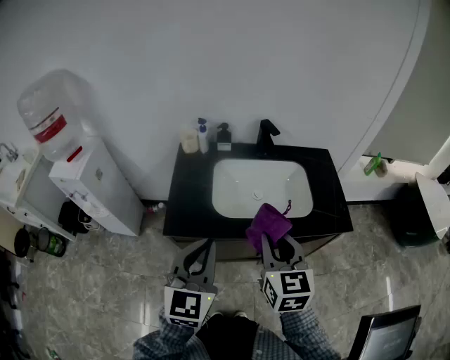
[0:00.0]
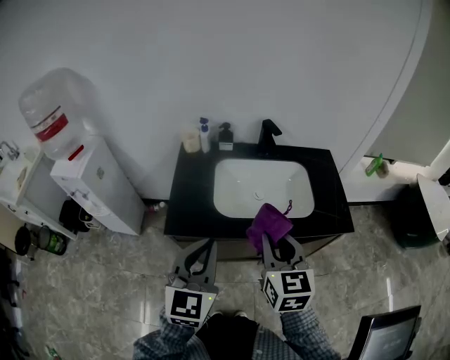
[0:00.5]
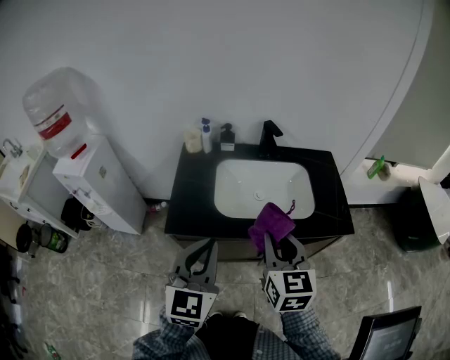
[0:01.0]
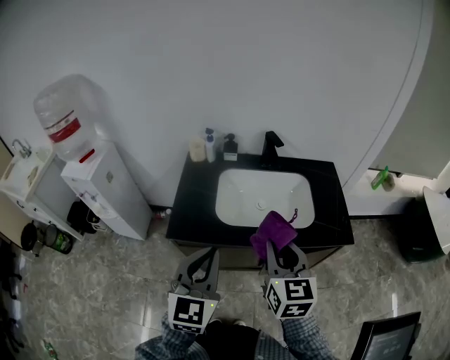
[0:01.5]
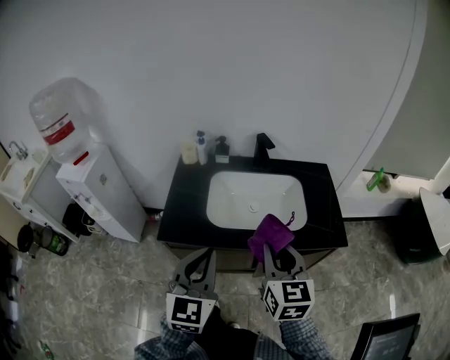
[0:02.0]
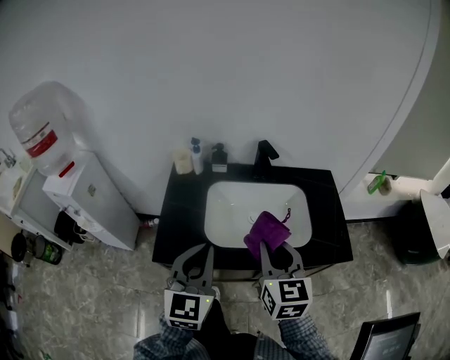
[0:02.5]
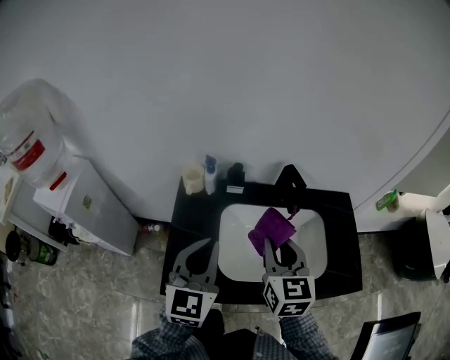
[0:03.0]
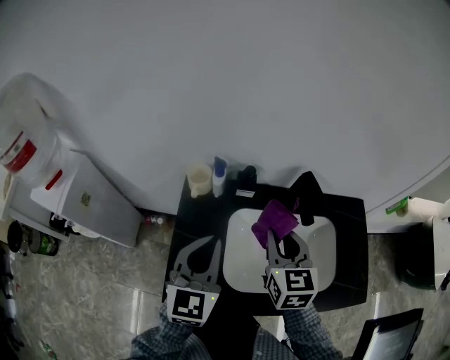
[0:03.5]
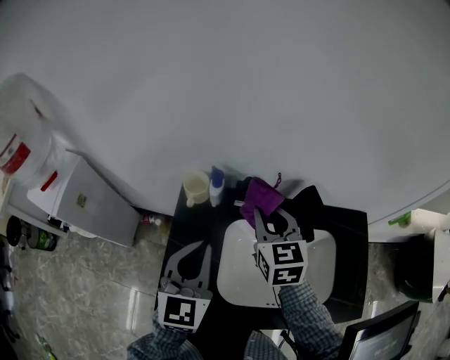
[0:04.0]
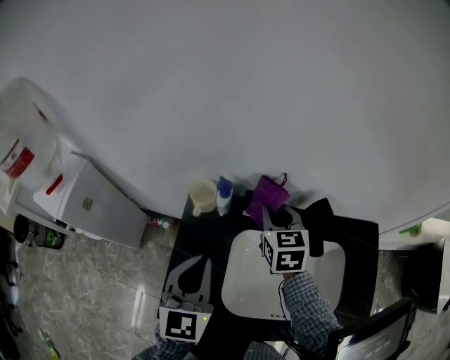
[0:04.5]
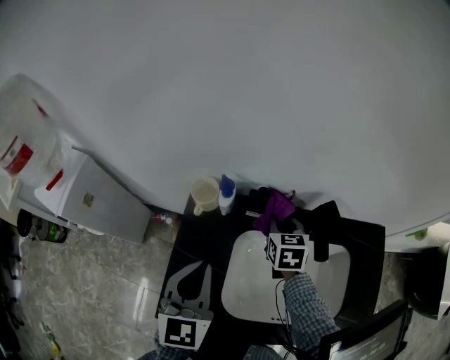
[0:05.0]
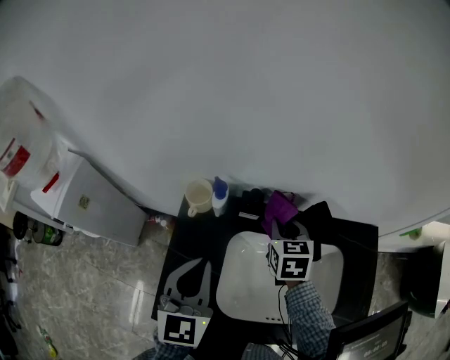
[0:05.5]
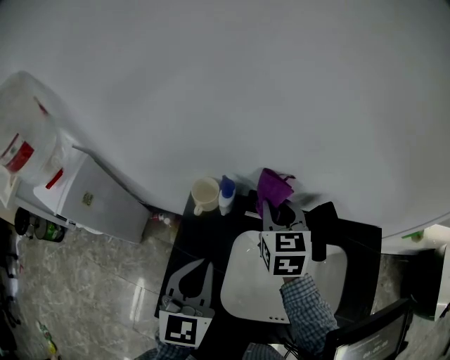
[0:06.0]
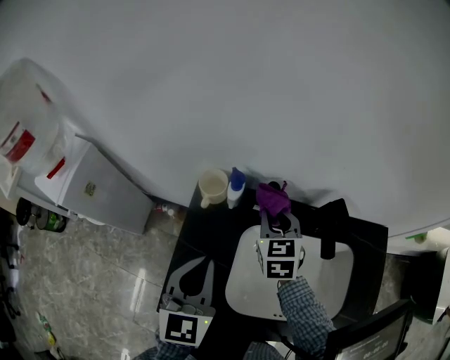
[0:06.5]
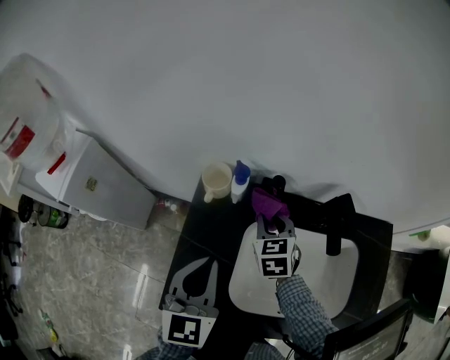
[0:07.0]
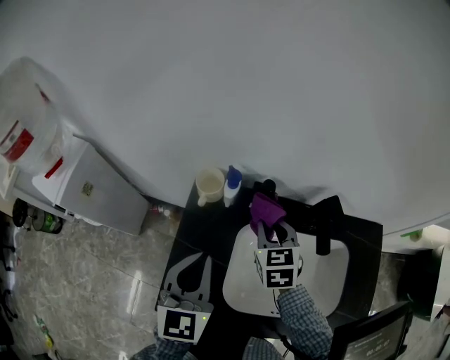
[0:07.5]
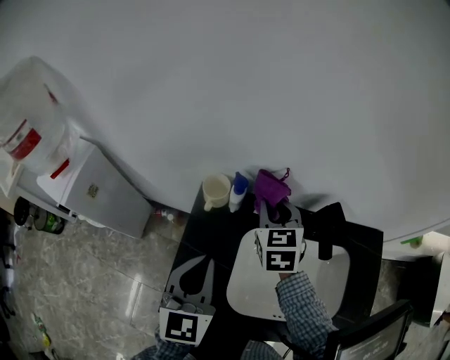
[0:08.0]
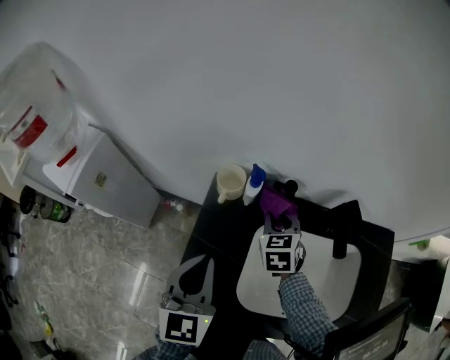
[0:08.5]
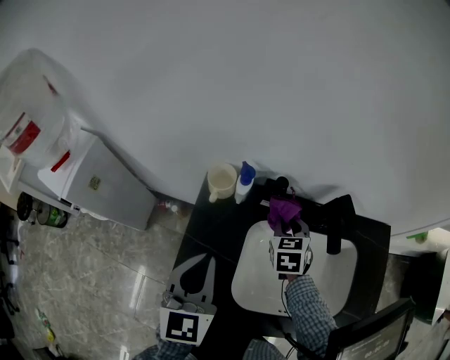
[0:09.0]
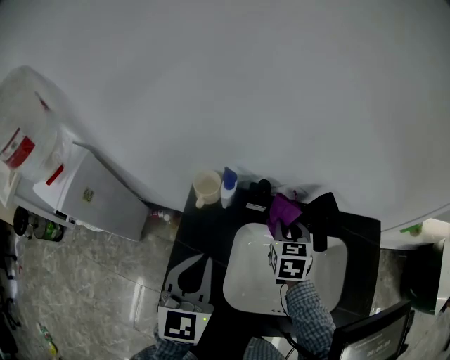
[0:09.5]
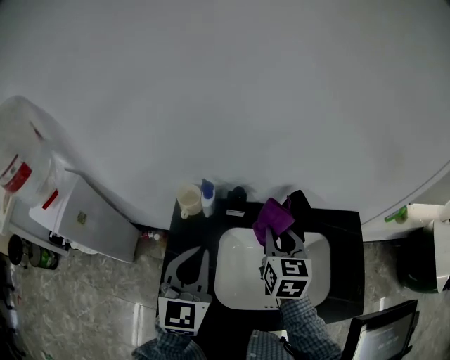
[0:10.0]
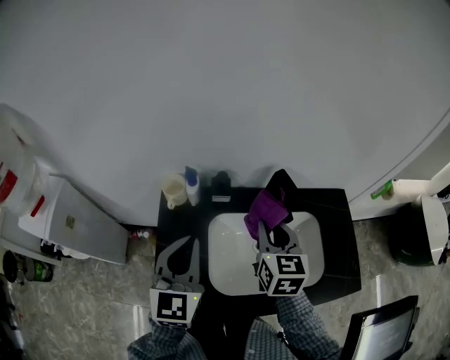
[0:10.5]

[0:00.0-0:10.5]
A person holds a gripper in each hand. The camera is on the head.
0:00.0 to 0:02.0: The left gripper ends up about 5 cm from where it was; the right gripper heads to the right, covering some 5 cm.
0:02.0 to 0:04.0: Both grippers move forward, approximately 40 cm.
0:04.0 to 0:06.5: The right gripper goes up and down, about 15 cm each way, reversing 2 times.
0:06.5 to 0:08.5: The right gripper moves up and down over about 10 cm, changing direction 2 times.
0:08.5 to 0:10.5: The right gripper travels upward, to the right and backward by some 20 cm, and turns by roughly 30 degrees. Meanwhile the left gripper shifts approximately 10 cm to the right and upward.

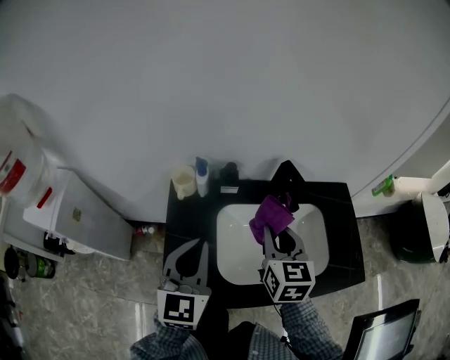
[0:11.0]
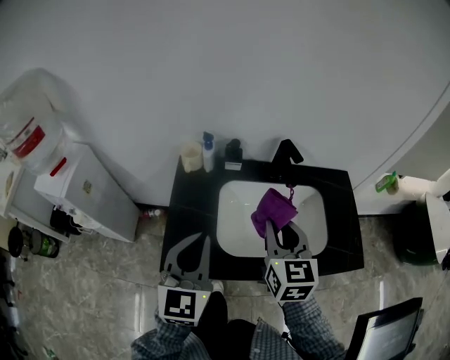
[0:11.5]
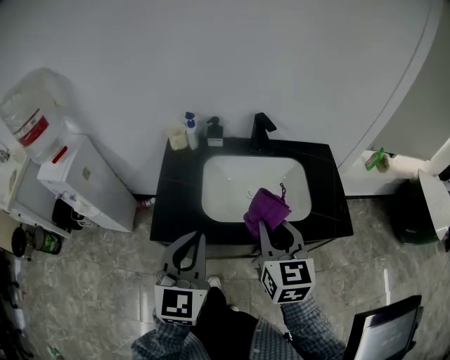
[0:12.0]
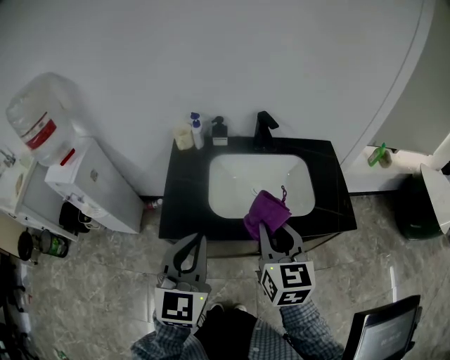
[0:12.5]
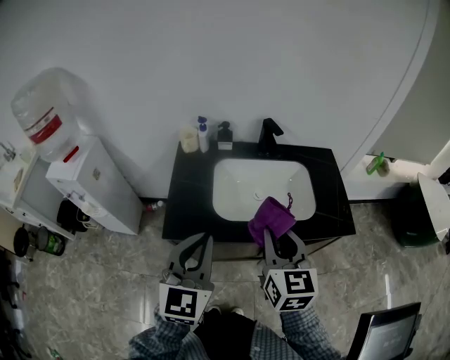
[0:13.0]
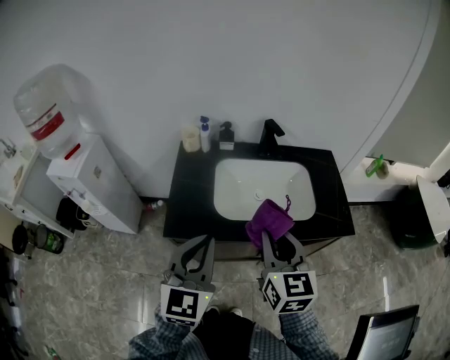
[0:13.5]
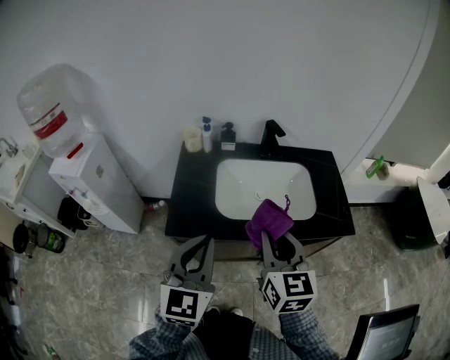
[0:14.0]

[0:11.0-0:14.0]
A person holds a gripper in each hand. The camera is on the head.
0:11.0 to 0:12.5: Both grippers move backward, about 25 cm.
0:12.5 to 0:14.0: The grippers make only small movements.

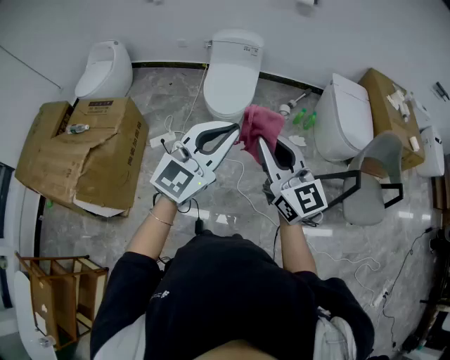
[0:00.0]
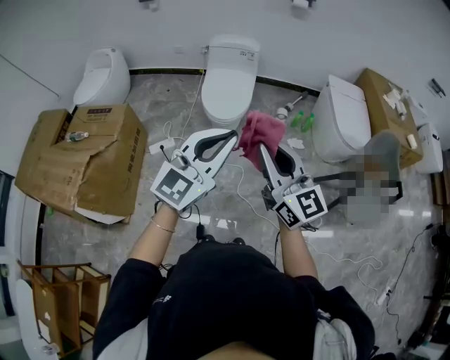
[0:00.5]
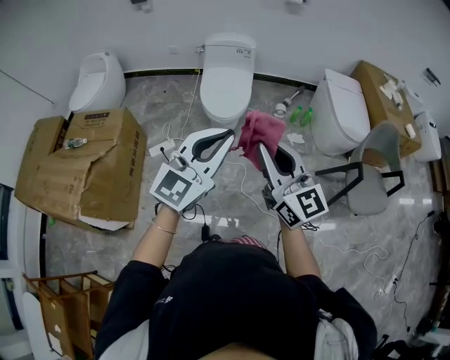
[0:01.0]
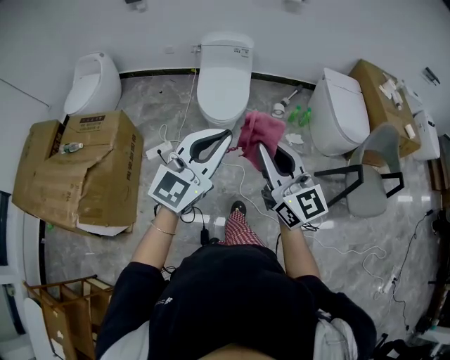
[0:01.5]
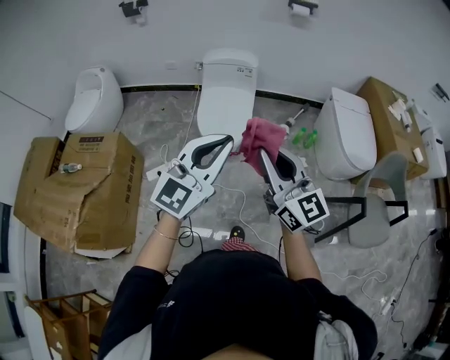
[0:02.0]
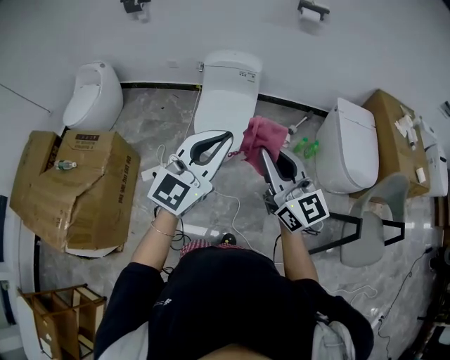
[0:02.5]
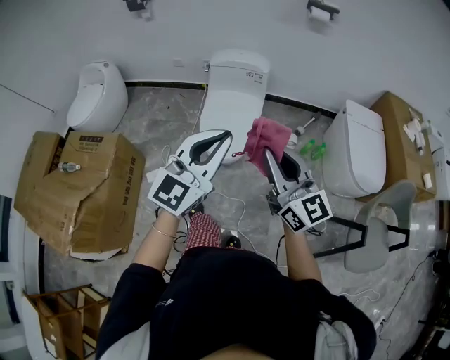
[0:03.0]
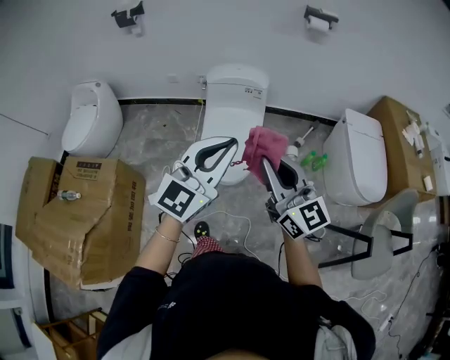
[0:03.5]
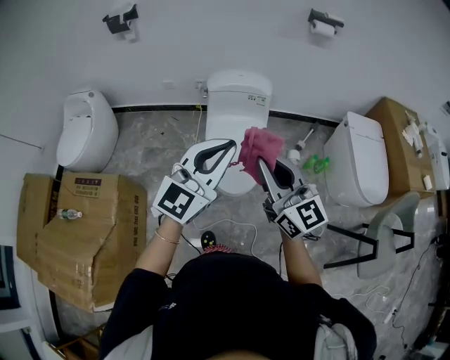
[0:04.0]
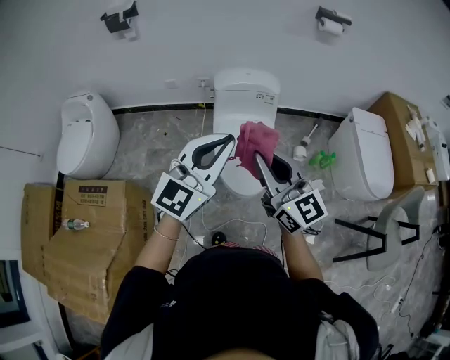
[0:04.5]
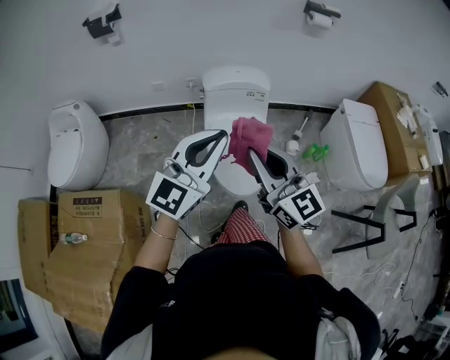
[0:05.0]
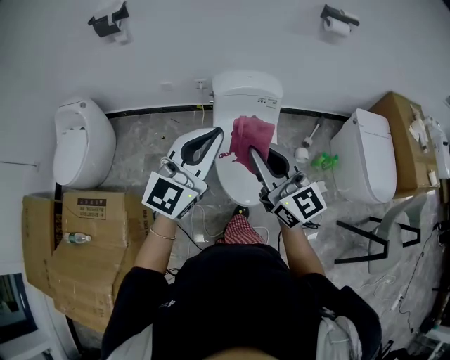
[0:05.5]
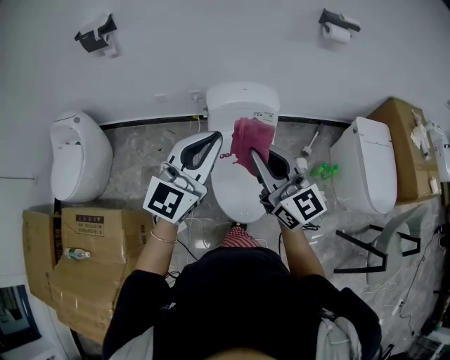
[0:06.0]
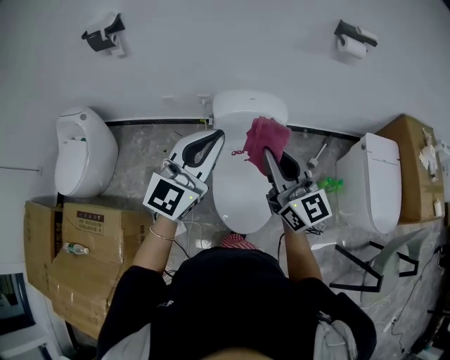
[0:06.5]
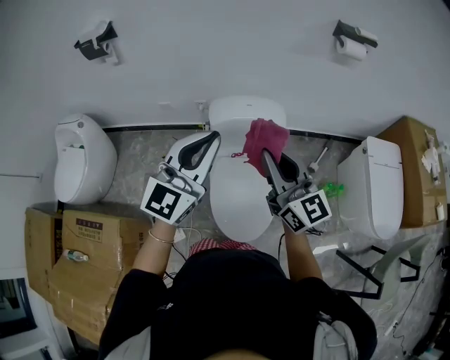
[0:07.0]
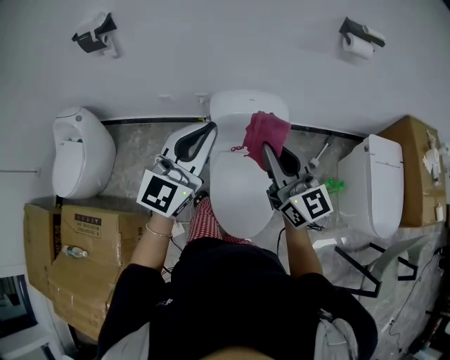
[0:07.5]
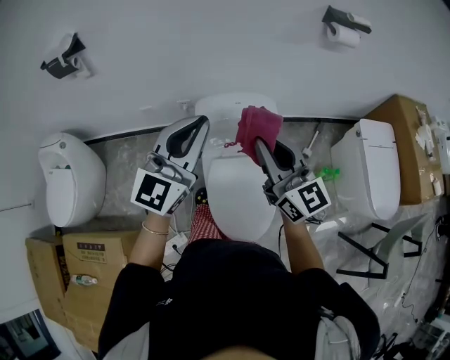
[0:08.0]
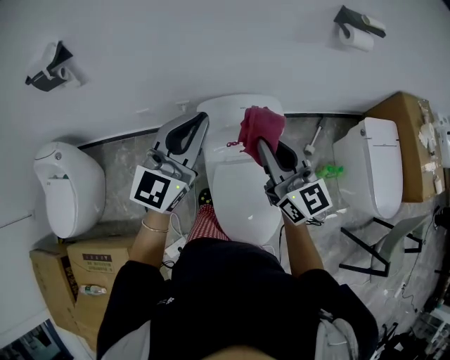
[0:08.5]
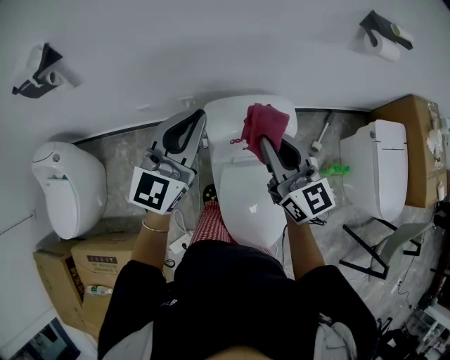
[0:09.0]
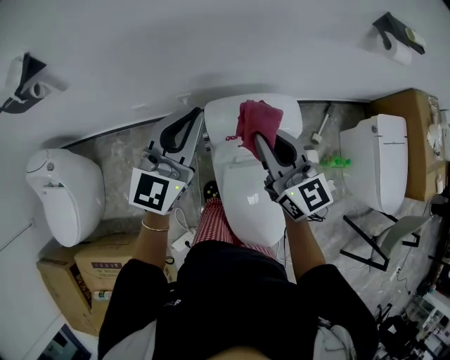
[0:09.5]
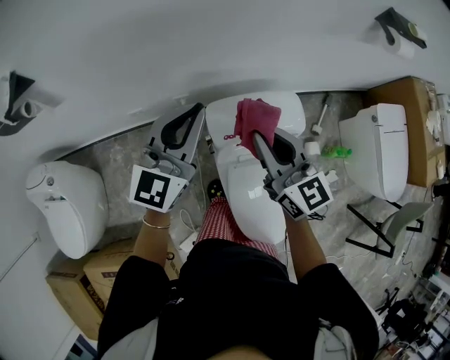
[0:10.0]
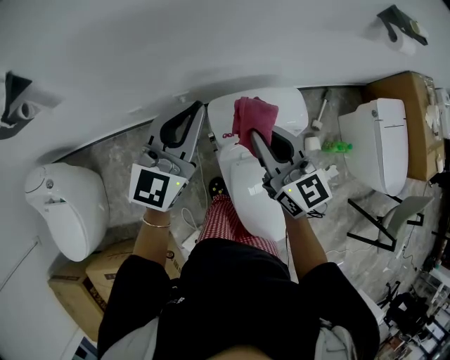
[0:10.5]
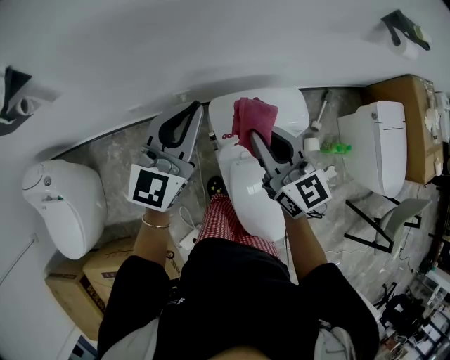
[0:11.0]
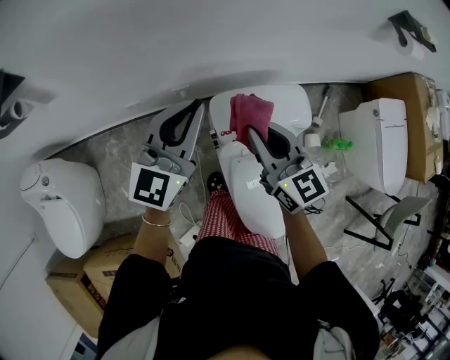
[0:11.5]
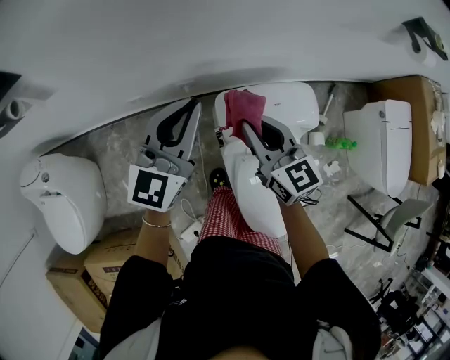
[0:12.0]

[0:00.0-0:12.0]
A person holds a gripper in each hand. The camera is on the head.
0:00.0 to 0:02.0: Both grippers move forward, roughly 15 cm.
0:02.0 to 0:04.0: The left gripper goes approximately 25 cm forward; the right gripper shifts about 30 cm forward and to the left.
0:04.0 to 0:06.0: The two grippers go approximately 20 cm forward and to the left.
0:06.0 to 0:08.0: Both grippers move forward, about 20 cm.
0:08.0 to 0:10.0: The right gripper shifts some 25 cm forward, to the left and downward. The left gripper goes roughly 25 cm forward and to the left.
0:10.0 to 0:12.0: The left gripper heads to the left, covering approximately 5 cm. Meanwhile the right gripper goes approximately 10 cm downward and to the left.

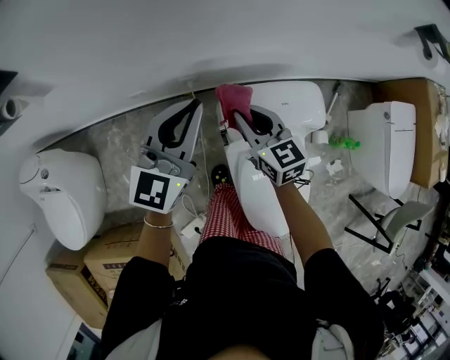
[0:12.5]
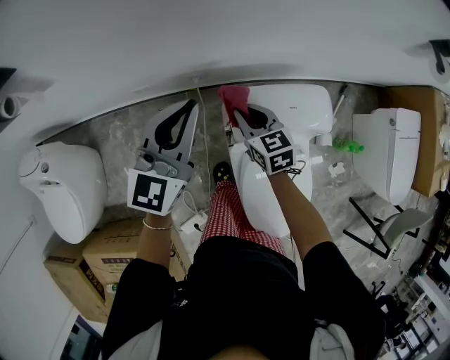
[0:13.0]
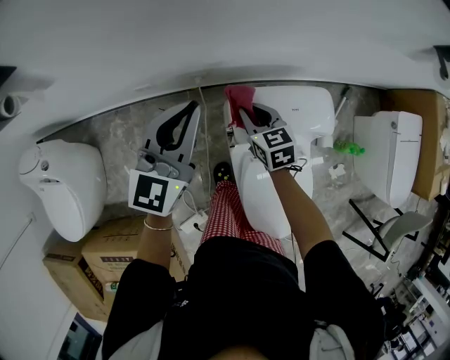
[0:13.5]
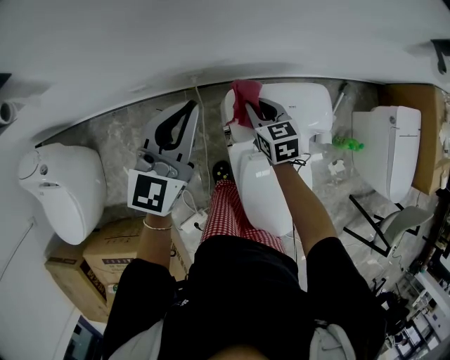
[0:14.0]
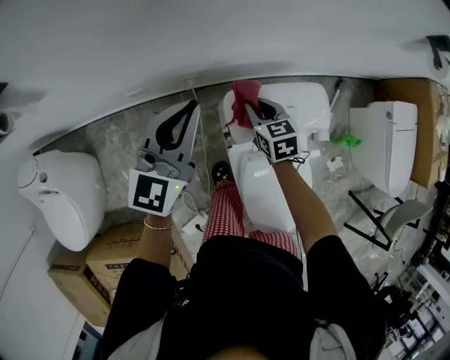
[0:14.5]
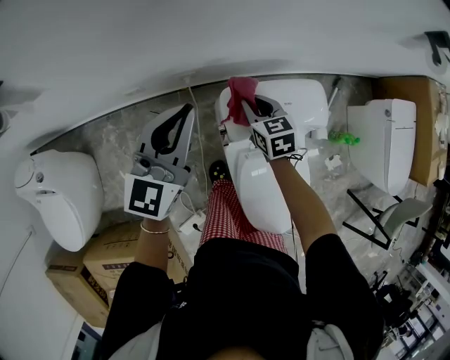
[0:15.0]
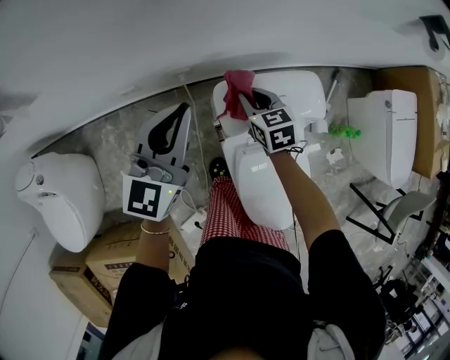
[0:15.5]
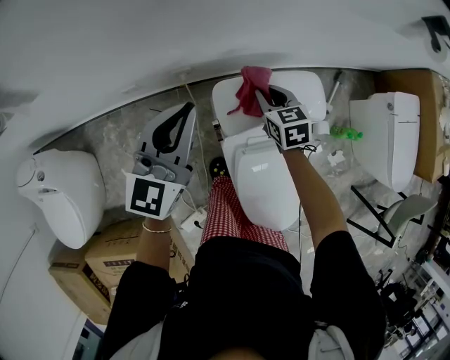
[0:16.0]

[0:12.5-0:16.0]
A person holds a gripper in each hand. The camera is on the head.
0:12.5 to 0:14.5: The right gripper moves downward, some 10 cm, and swivels roughly 20 degrees.
0:14.5 to 0:16.0: The right gripper shifts approximately 5 cm to the right.
